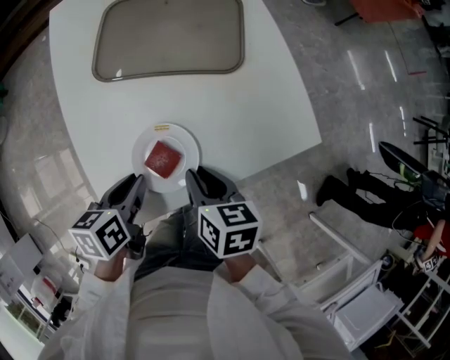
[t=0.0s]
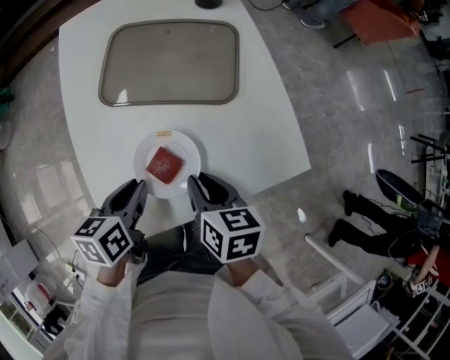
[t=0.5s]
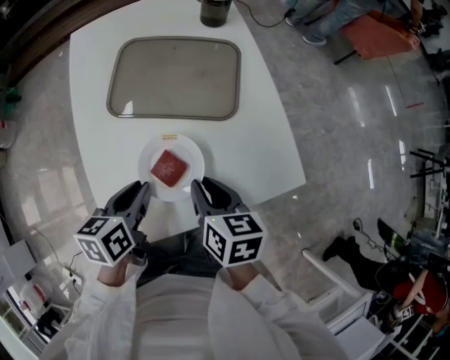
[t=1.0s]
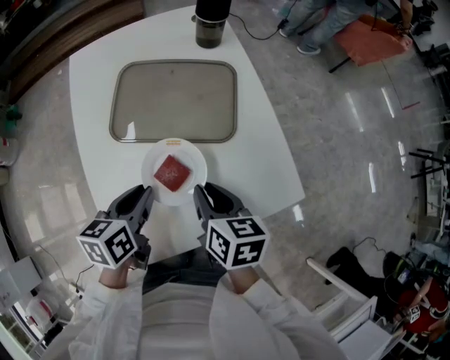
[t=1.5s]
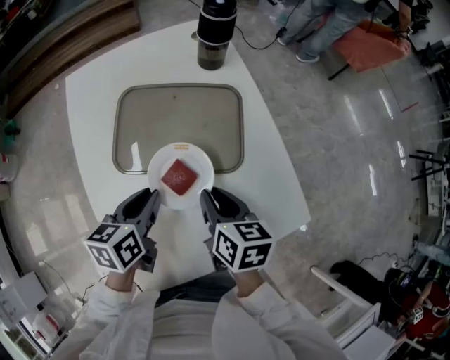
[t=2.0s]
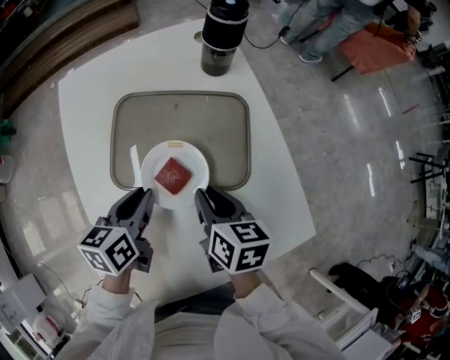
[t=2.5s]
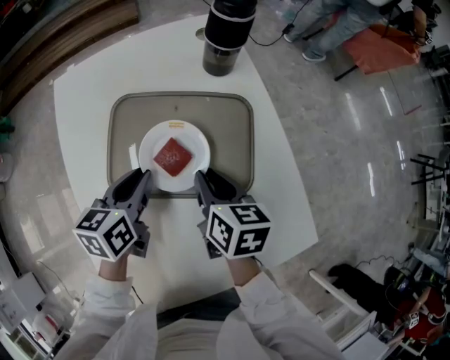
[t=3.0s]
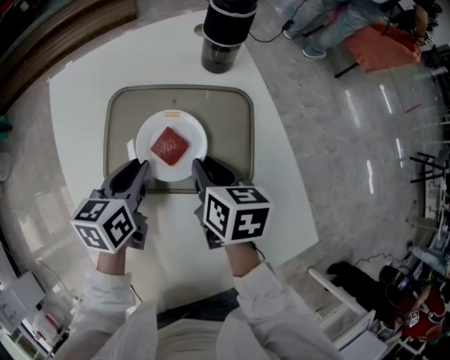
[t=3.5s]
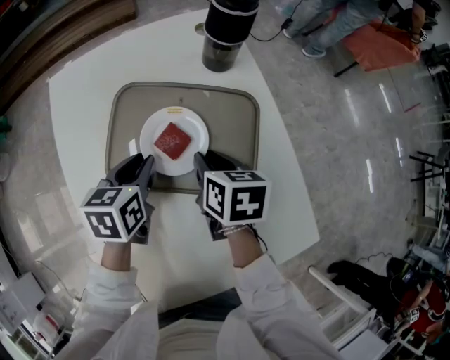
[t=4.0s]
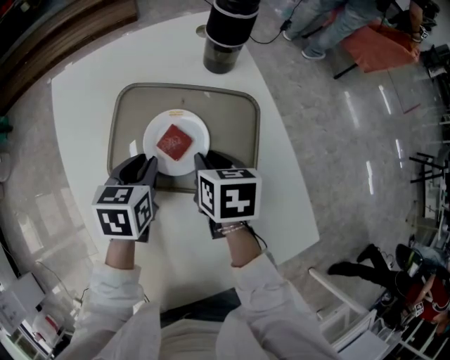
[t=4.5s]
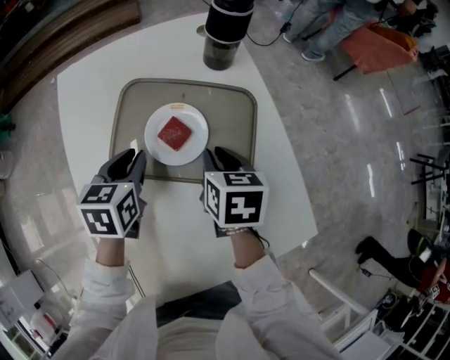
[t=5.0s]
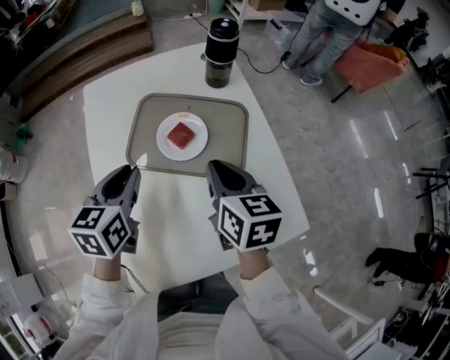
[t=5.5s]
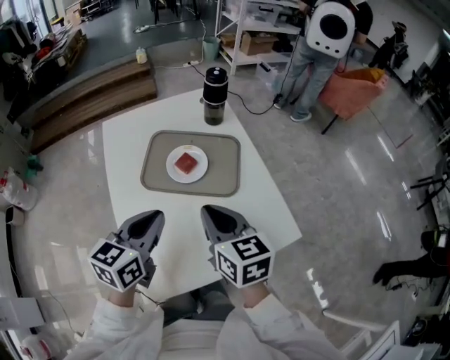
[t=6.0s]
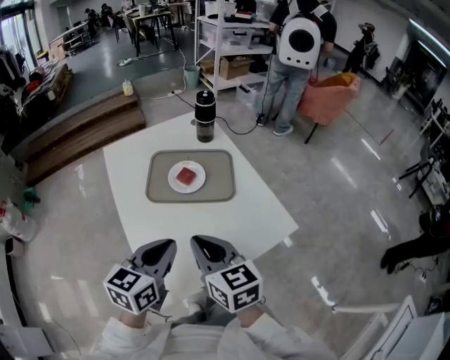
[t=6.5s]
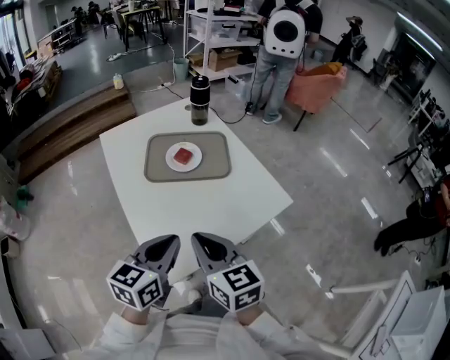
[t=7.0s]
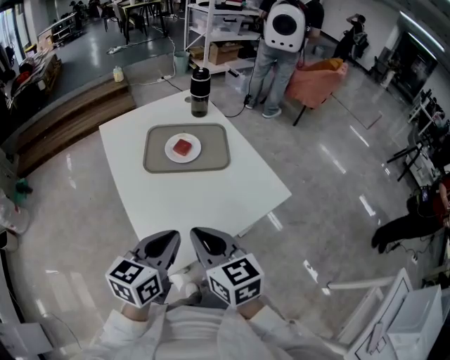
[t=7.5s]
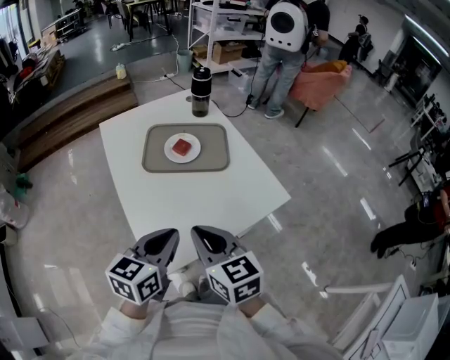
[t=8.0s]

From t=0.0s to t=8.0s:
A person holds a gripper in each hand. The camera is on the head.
From t=0.0s to t=2.0s: The two grippers go about 20 cm forward.
From t=2.0s to t=4.0s: Both grippers move forward, some 15 cm.
From t=4.0s to t=6.0s: The grippers both shift backward and upward by about 25 cm. The left gripper swivels roughly 30 degrees. Meanwhile the right gripper swivels about 30 degrees.
From t=6.0s to t=8.0s: Both grippers move backward, roughly 15 cm.

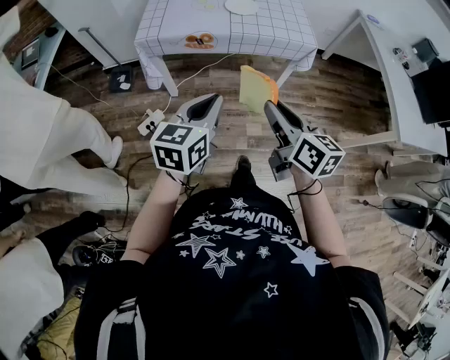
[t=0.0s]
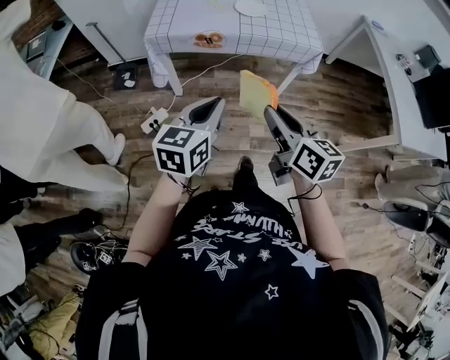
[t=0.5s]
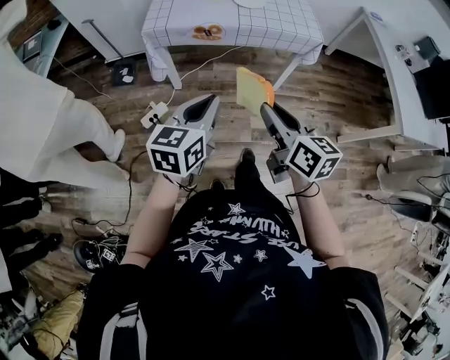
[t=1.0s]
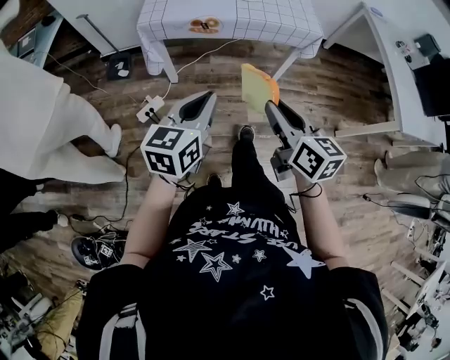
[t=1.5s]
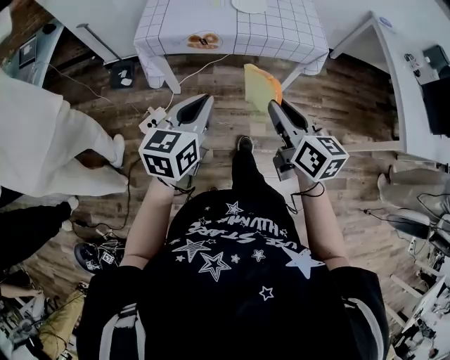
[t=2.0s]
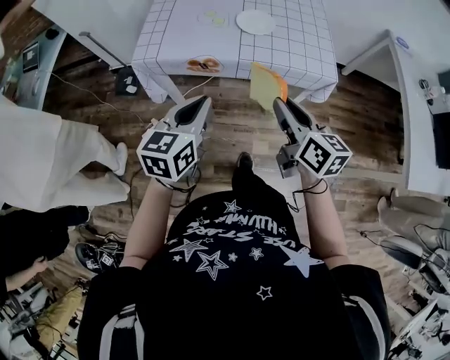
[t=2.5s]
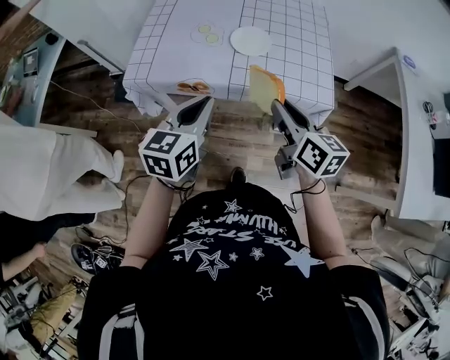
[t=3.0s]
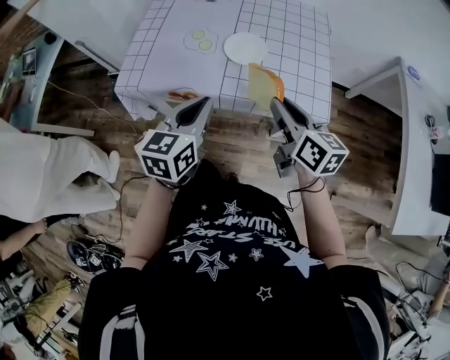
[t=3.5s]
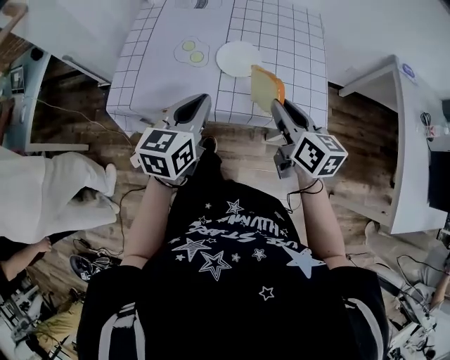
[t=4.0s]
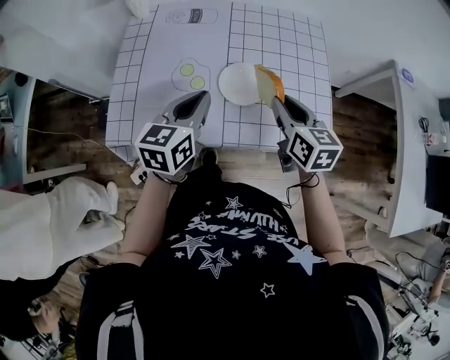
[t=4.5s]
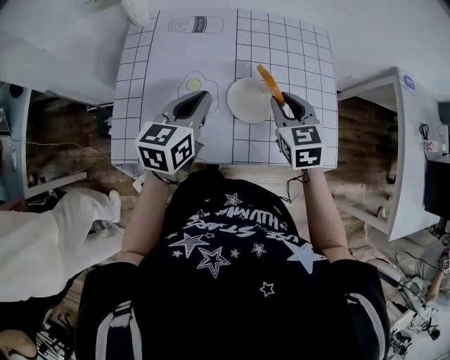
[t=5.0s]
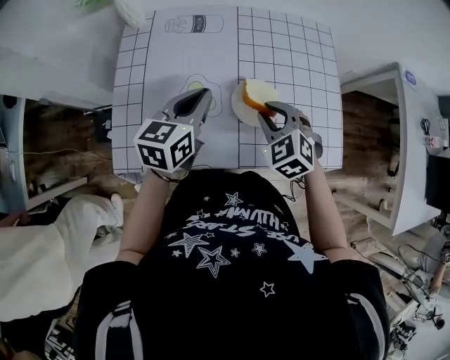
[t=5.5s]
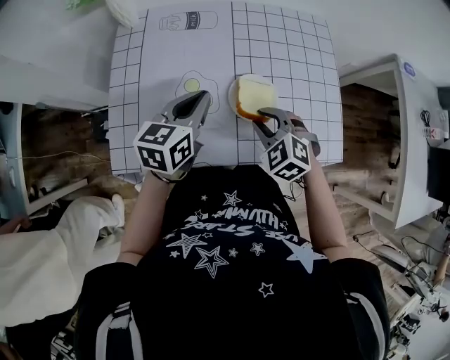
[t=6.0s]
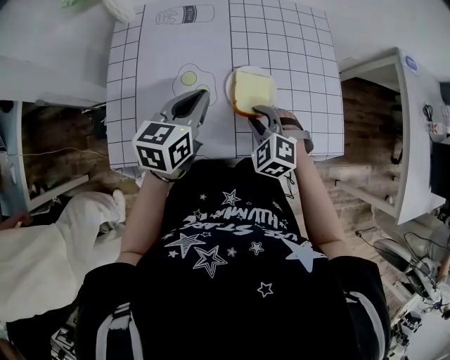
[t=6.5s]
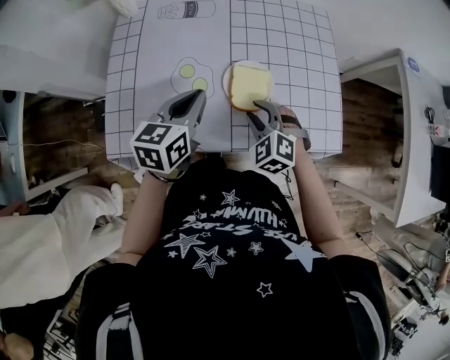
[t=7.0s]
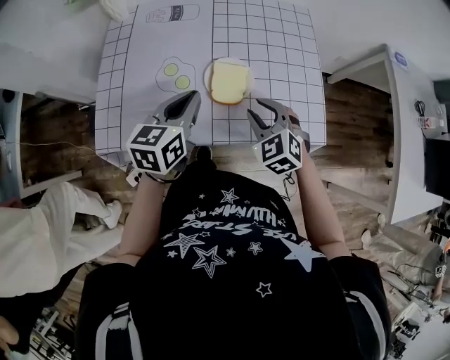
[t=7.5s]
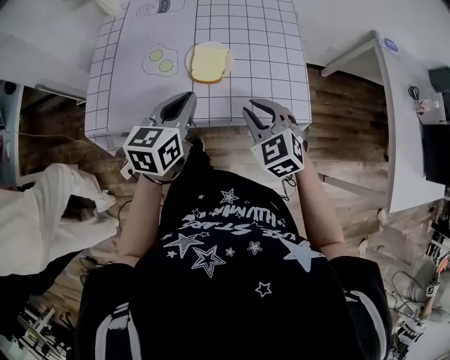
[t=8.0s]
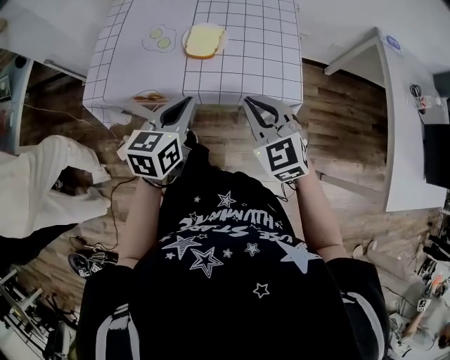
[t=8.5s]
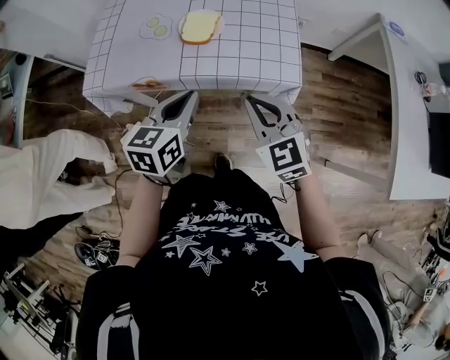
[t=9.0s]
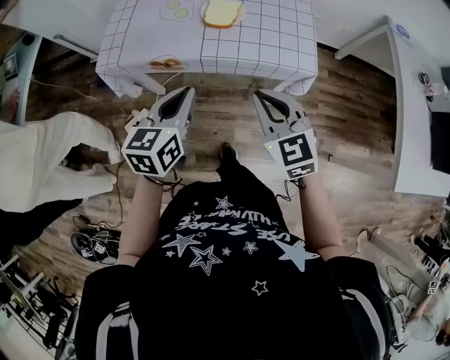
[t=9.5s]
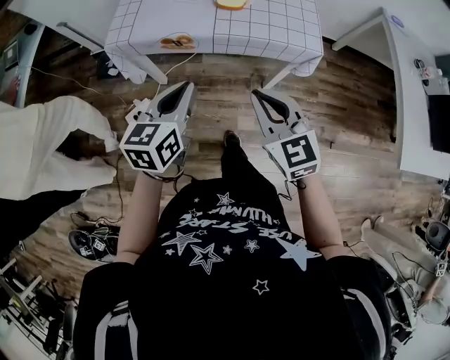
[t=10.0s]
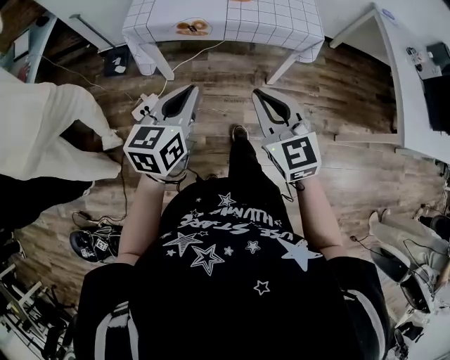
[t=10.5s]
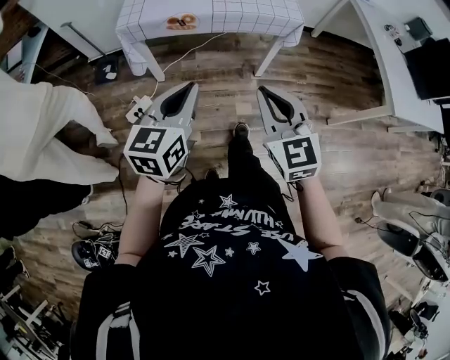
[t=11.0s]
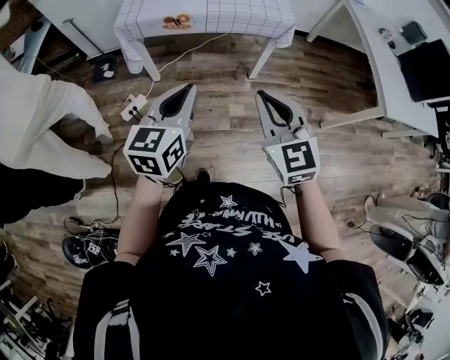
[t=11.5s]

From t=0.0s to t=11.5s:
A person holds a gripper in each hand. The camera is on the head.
From t=0.0s to t=2.0s: The left gripper shifts by roughly 5 cm. The right gripper shifts by approximately 5 cm.
From t=2.0s to t=4.0s: Both grippers move forward, approximately 35 cm.
From t=4.0s to t=6.0s: The left gripper shifts approximately 20 cm forward and to the left. The right gripper moves to the left, forward and downward, some 20 cm, and rotates around the line of its fingers by some 60 degrees, counterclockwise from behind.
From t=6.0s to t=7.5s: The left gripper moves backward and to the right, some 10 cm. The right gripper heads to the right, covering roughly 5 cm.
From t=7.5s to t=9.5s: Both grippers travel together backward, some 25 cm. The right gripper swivels roughly 20 degrees, and closes its fingers.
From t=9.5s to t=11.5s: The grippers both shift backward by roughly 30 cm.

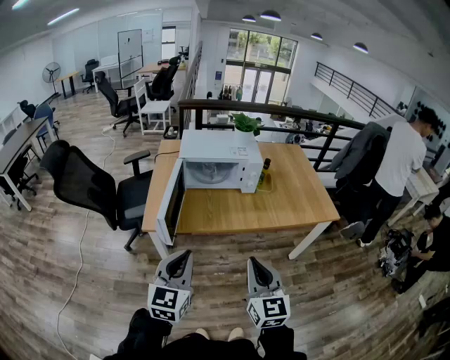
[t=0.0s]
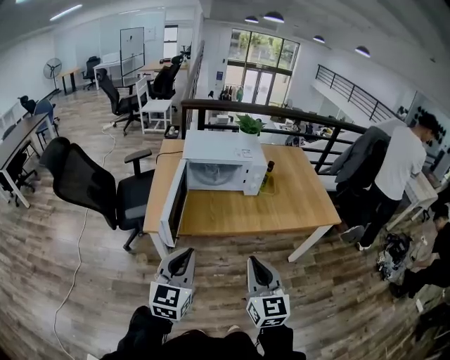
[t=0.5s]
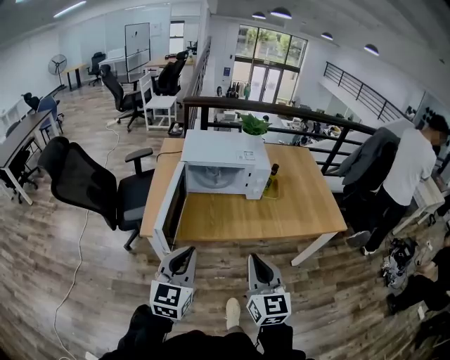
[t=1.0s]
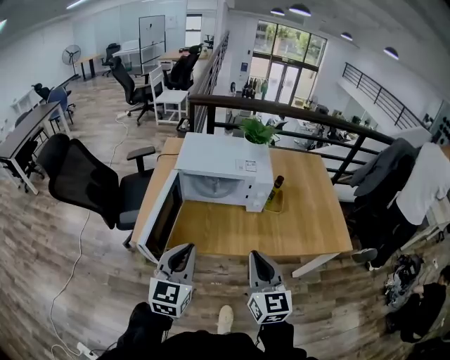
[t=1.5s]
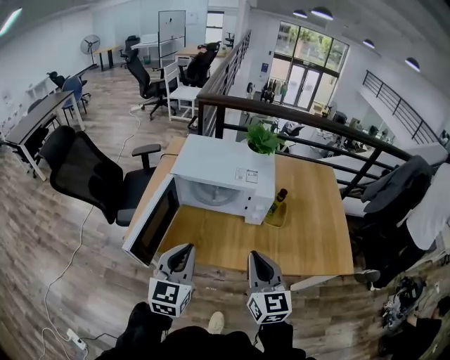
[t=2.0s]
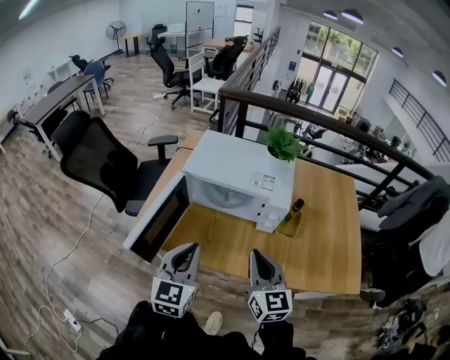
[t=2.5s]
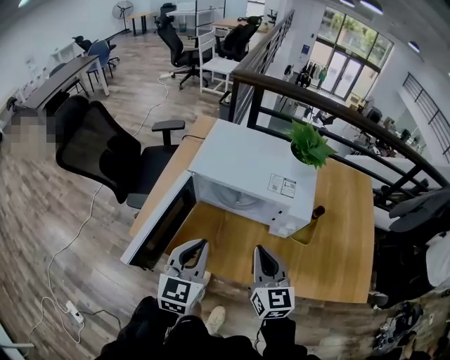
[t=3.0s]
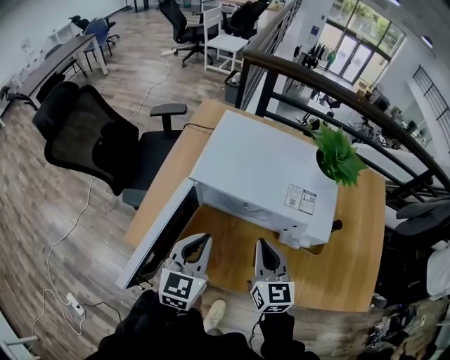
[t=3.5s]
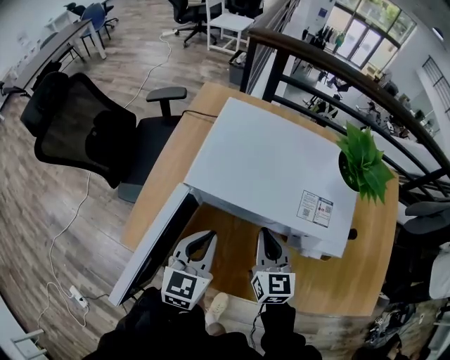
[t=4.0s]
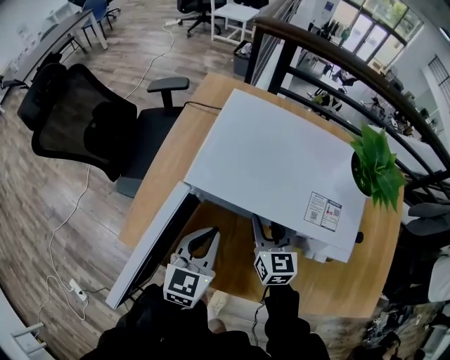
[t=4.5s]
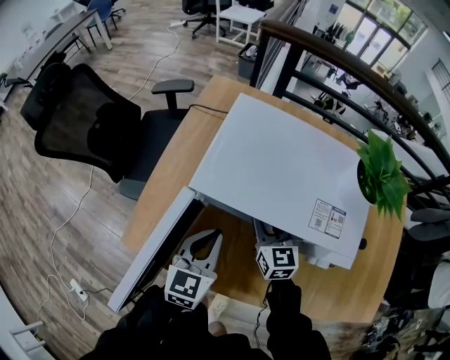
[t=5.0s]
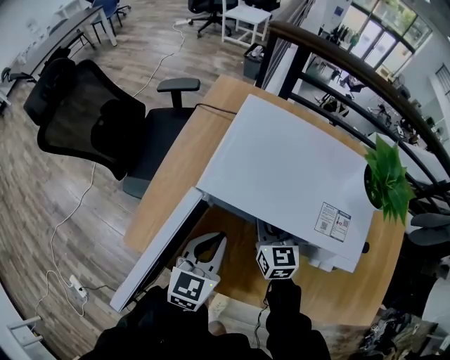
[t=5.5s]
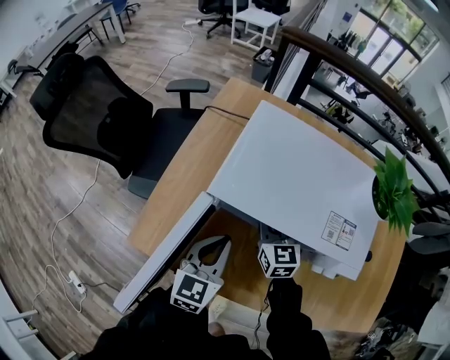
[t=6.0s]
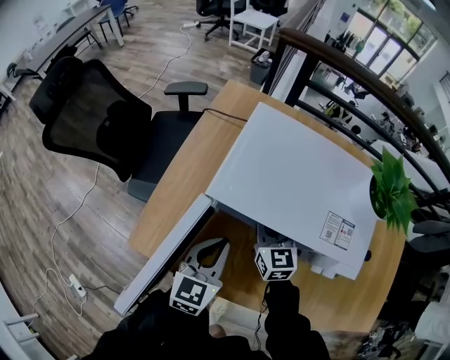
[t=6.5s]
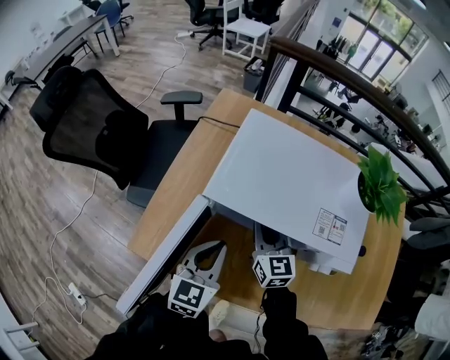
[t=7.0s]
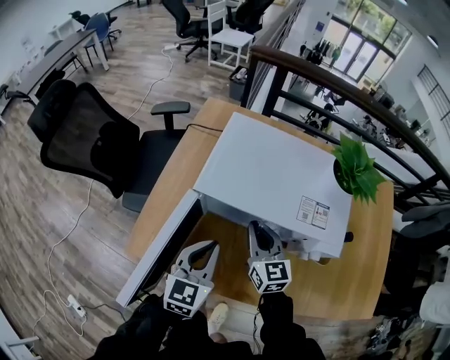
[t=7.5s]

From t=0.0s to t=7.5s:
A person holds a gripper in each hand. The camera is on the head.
From t=0.0s to t=2.0s: The two grippers go some 30 cm forward.
From t=2.0s to t=4.0s: Both grippers travel together forward and downward, roughly 35 cm.
From t=4.0s to t=5.5s: The right gripper travels forward by approximately 10 cm, and opens, then closes once more.
From t=5.5s to t=7.5s: The right gripper shifts some 10 cm backward and upward. The left gripper changes place by roughly 5 cm.
